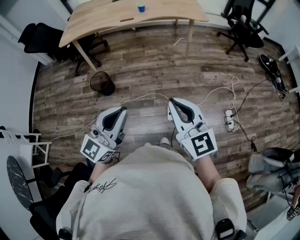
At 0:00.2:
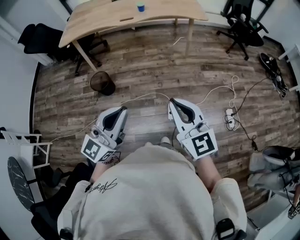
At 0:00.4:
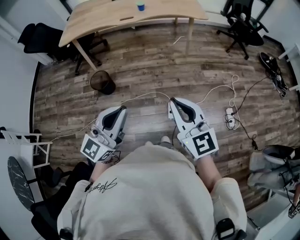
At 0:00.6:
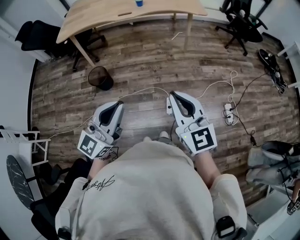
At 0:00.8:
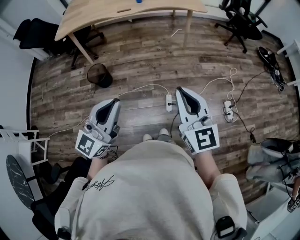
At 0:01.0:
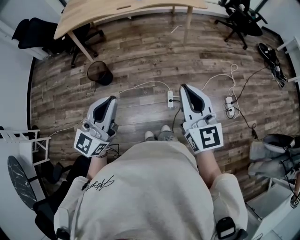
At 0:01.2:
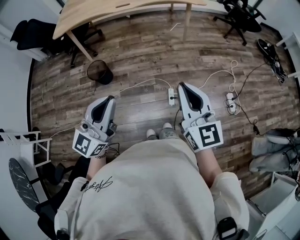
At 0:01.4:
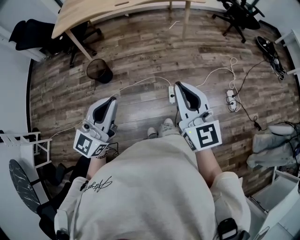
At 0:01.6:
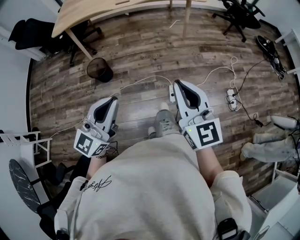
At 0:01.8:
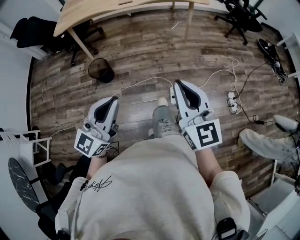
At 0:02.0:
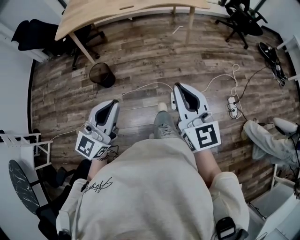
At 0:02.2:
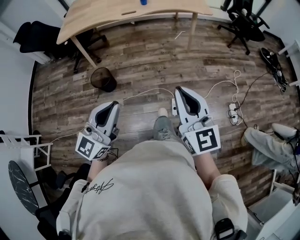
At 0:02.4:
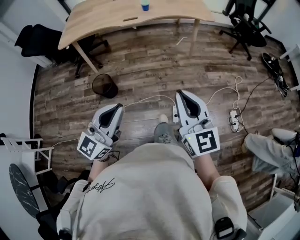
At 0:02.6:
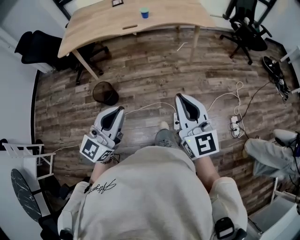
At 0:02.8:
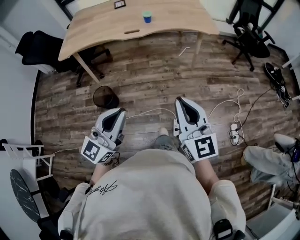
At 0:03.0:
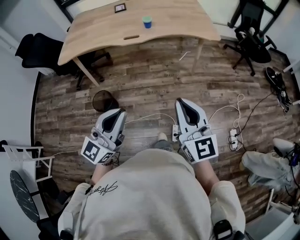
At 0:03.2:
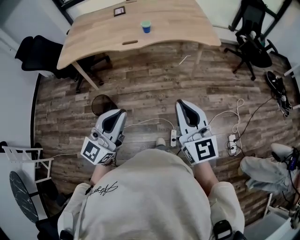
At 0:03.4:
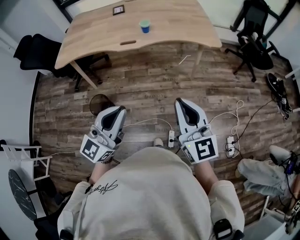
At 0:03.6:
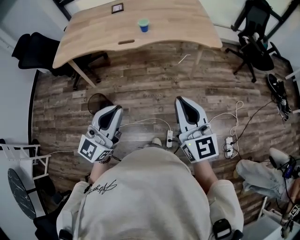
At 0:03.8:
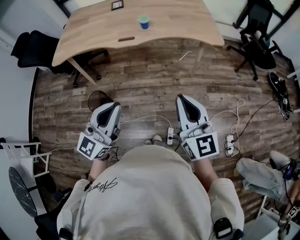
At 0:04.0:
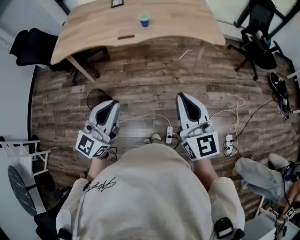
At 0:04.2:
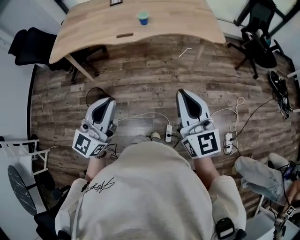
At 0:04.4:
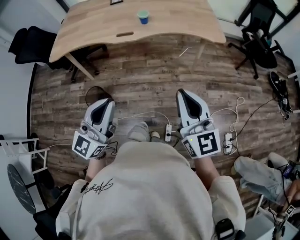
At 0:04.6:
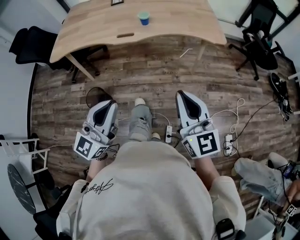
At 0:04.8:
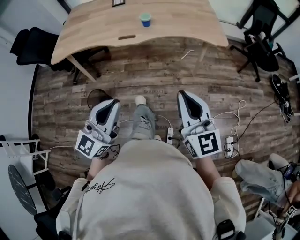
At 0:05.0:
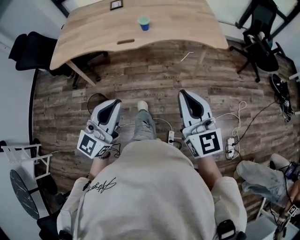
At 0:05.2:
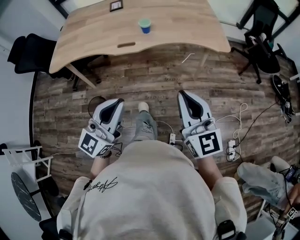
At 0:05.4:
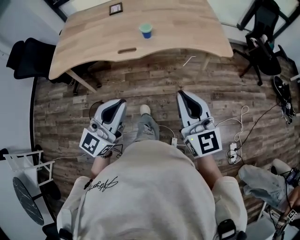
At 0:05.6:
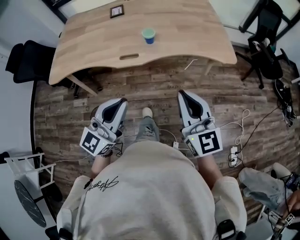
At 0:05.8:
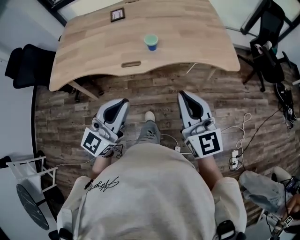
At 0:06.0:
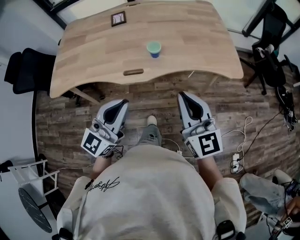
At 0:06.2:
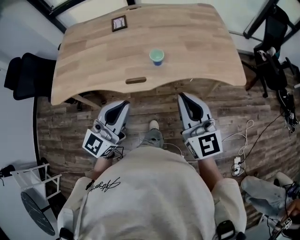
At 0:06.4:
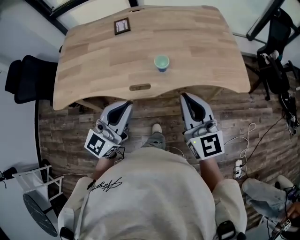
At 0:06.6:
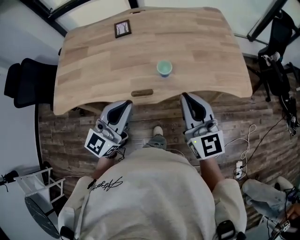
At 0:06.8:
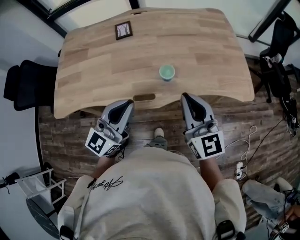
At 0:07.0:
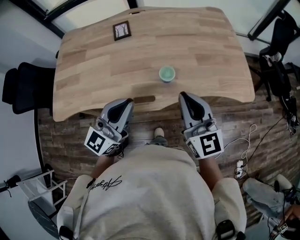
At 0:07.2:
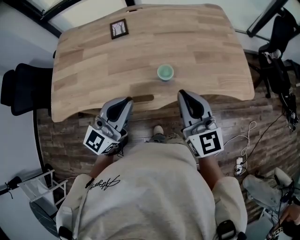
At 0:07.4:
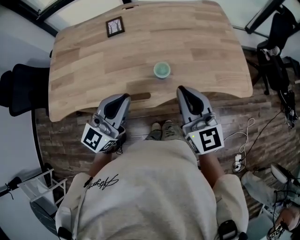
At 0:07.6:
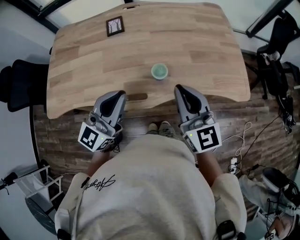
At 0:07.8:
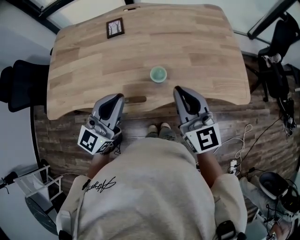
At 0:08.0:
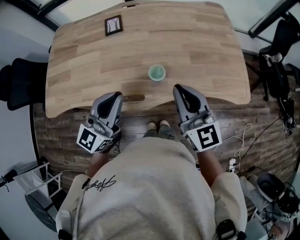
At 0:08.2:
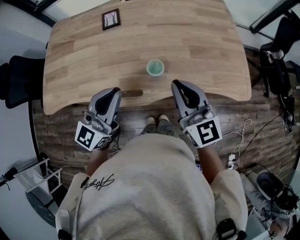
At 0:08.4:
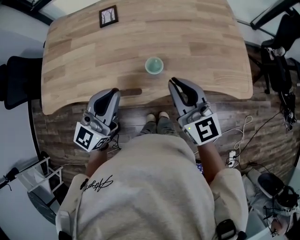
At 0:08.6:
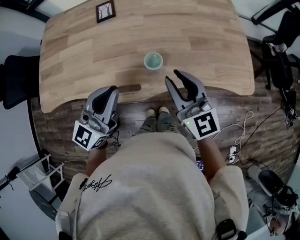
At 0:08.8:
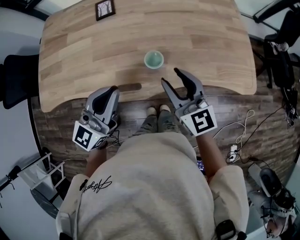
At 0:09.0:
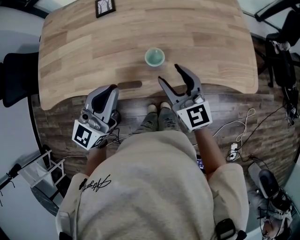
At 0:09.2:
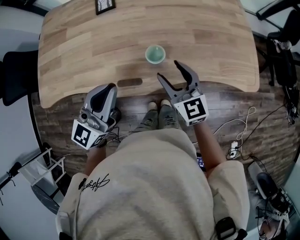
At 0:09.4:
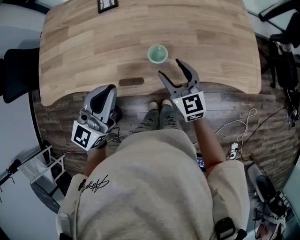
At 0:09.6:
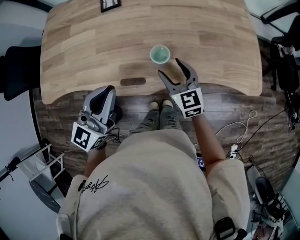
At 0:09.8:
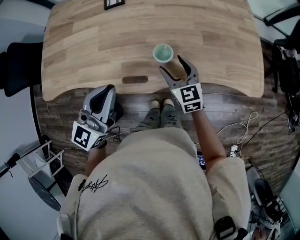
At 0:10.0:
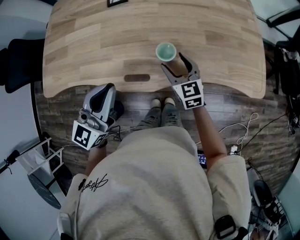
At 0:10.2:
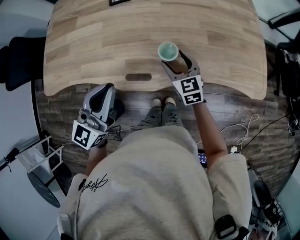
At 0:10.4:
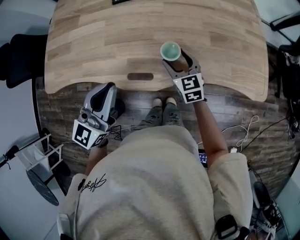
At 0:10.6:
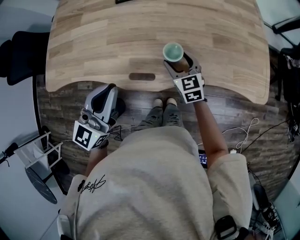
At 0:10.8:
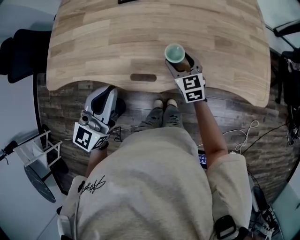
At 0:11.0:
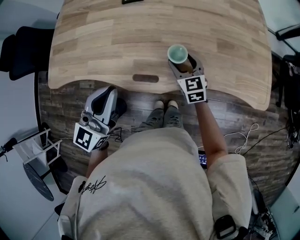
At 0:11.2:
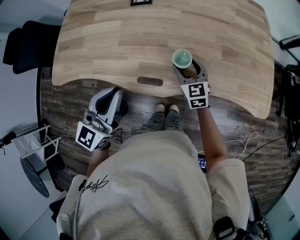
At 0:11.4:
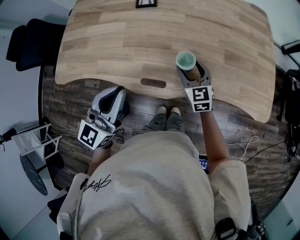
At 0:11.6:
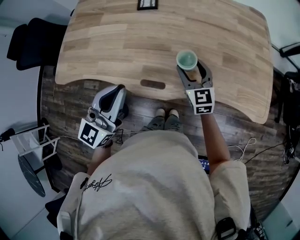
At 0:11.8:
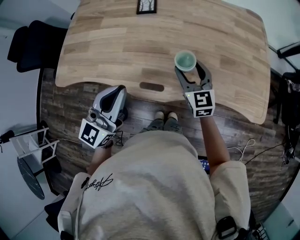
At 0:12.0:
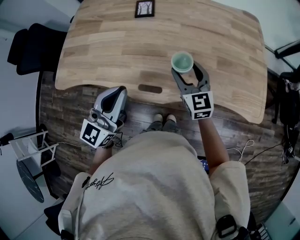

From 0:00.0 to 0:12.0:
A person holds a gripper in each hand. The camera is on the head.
From 0:00.0 to 0:01.6: The left gripper travels to the left by roughly 5 cm.
From 0:01.6 to 0:03.0: Both grippers travel together forward, approximately 20 cm.
From 0:03.0 to 0:04.4: Both grippers move forward, approximately 10 cm.
From 0:04.4 to 0:06.0: The grippers both shift forward by roughly 25 cm.
From 0:06.0 to 0:07.6: The grippers both shift forward by approximately 20 cm.
From 0:07.6 to 0:09.0: The right gripper heads downward, covering approximately 10 cm, and opens.
From 0:09.0 to 0:10.4: The right gripper is displaced downward and forward by roughly 15 cm. The left gripper shifts by about 5 cm.
From 0:10.4 to 0:12.0: The right gripper heads upward, covering roughly 10 cm.

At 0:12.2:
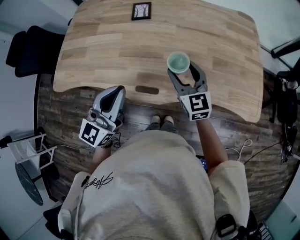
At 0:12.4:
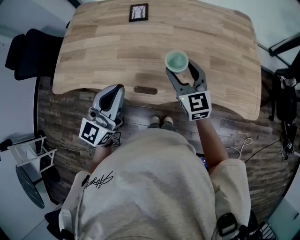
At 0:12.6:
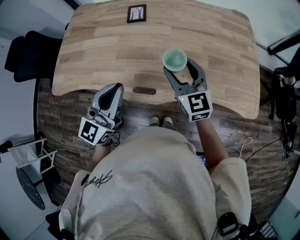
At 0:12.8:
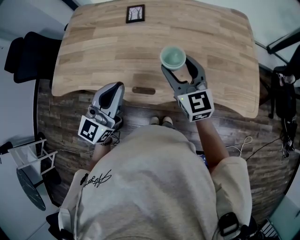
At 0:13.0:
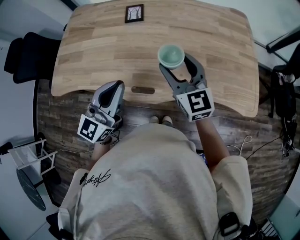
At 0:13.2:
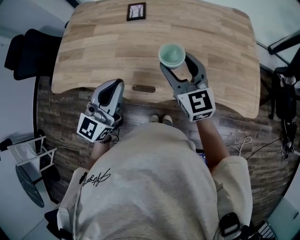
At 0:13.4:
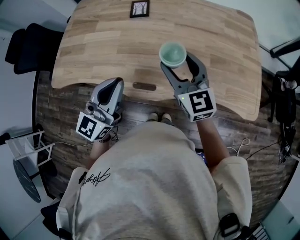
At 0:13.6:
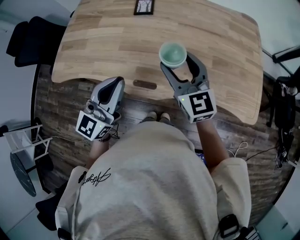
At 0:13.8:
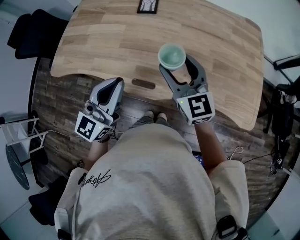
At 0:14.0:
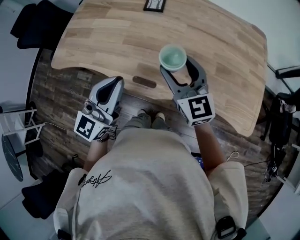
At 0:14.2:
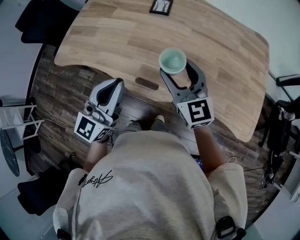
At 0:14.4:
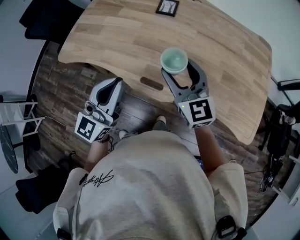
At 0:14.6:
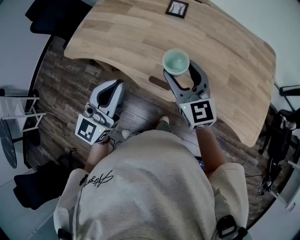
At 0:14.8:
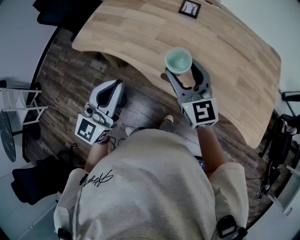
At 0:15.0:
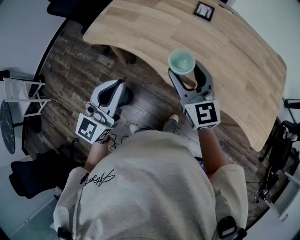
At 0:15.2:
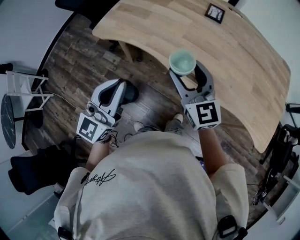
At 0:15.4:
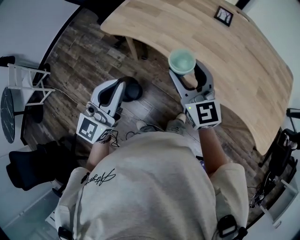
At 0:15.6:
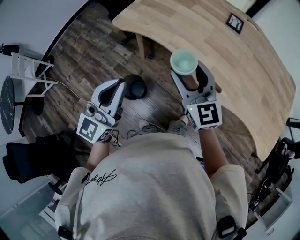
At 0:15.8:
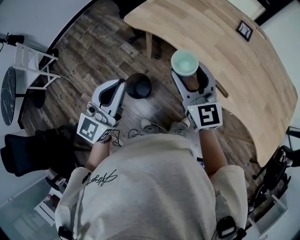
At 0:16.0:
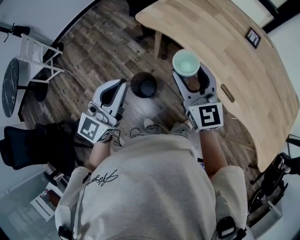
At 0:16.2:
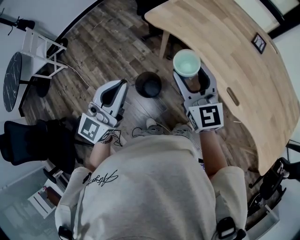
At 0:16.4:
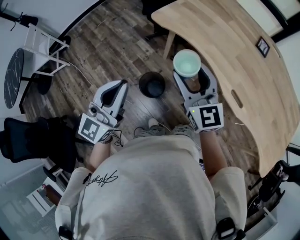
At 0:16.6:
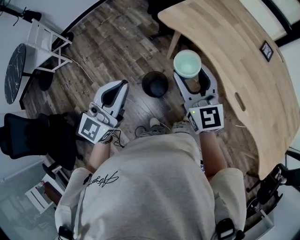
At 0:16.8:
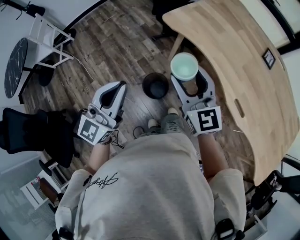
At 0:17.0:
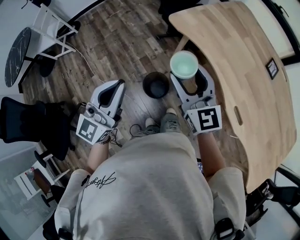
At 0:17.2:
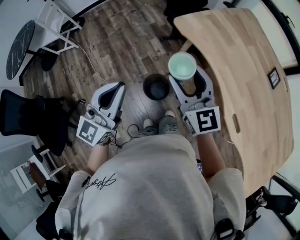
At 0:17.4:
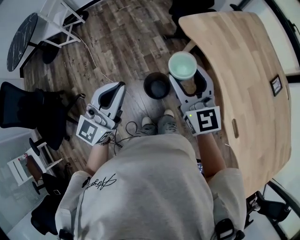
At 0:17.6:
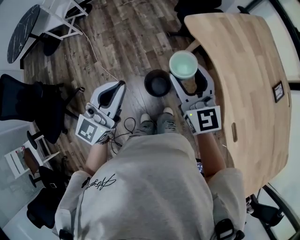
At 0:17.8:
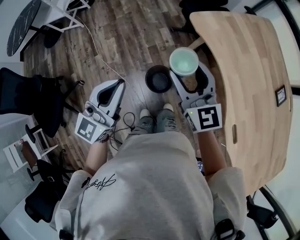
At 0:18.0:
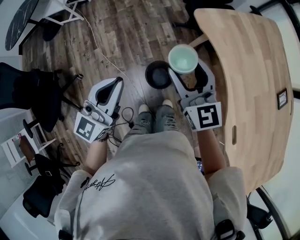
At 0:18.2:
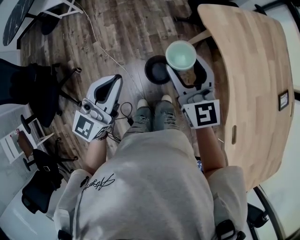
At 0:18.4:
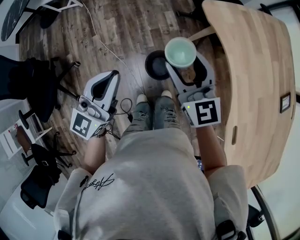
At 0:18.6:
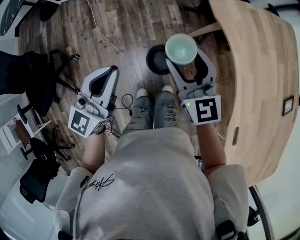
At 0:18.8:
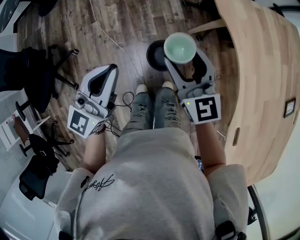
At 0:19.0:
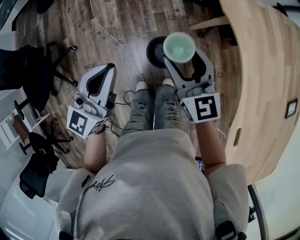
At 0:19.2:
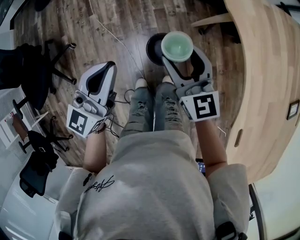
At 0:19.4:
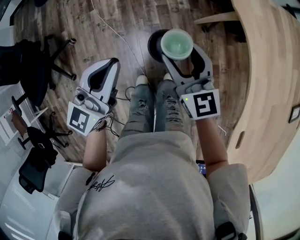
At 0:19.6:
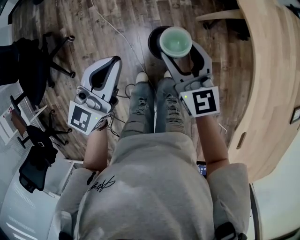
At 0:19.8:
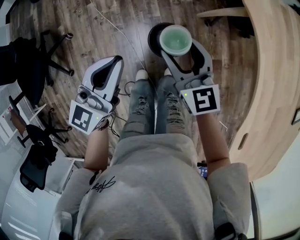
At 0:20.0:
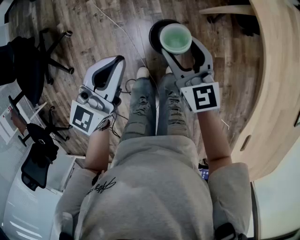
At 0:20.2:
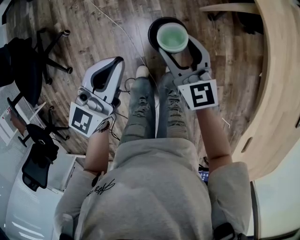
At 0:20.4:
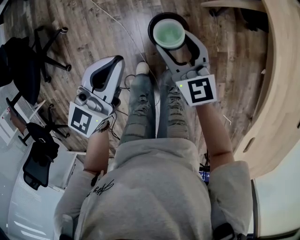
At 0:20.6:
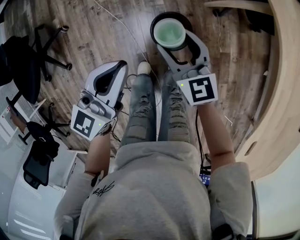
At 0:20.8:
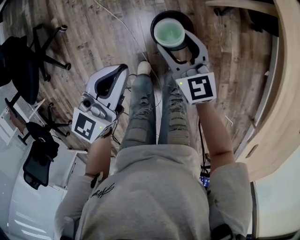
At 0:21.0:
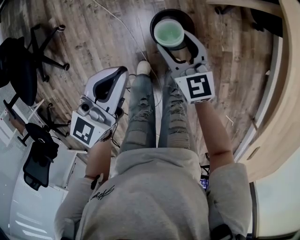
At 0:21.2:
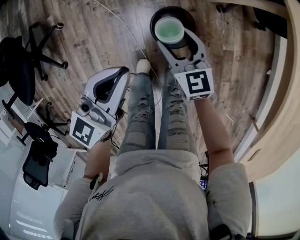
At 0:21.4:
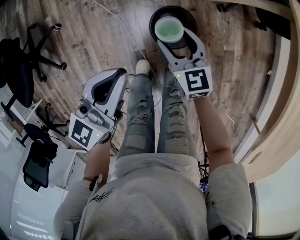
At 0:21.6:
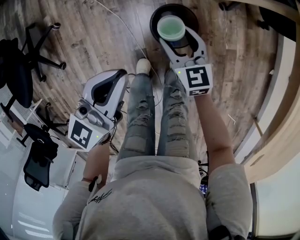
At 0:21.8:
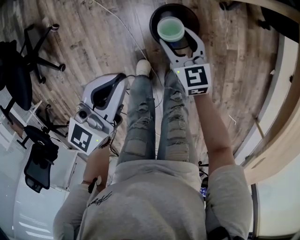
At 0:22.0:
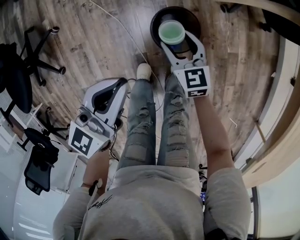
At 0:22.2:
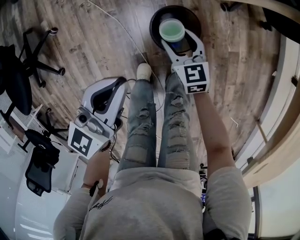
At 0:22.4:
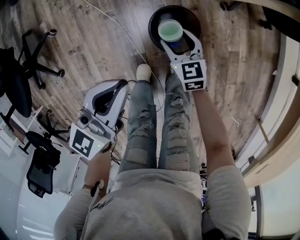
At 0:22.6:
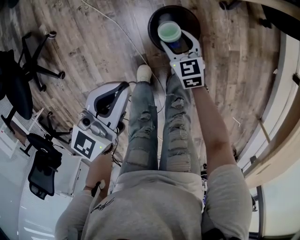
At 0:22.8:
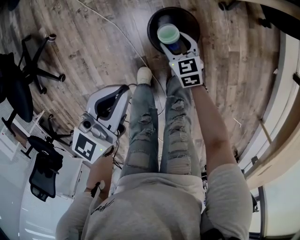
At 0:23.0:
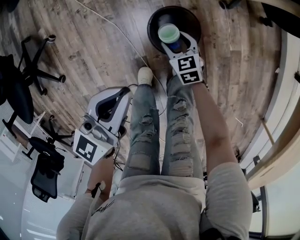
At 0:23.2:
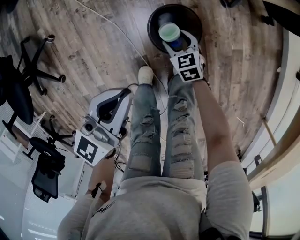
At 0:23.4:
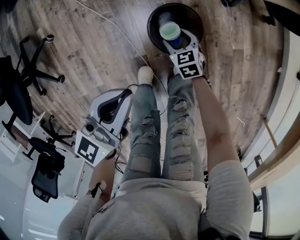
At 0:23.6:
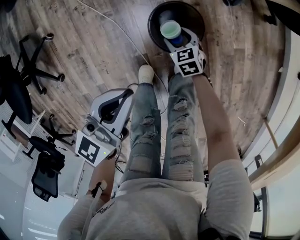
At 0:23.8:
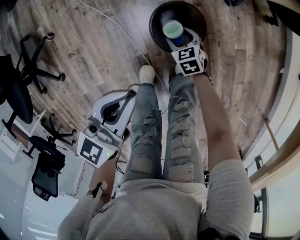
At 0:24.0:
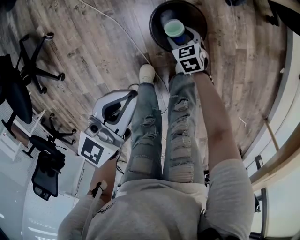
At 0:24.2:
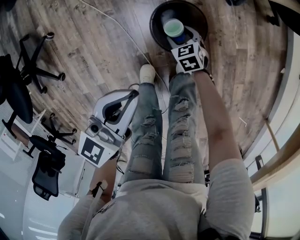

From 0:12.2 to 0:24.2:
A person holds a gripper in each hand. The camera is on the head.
From 0:12.2 to 0:13.8: The right gripper heads upward, covering some 5 cm.
From 0:13.8 to 0:15.2: The right gripper is displaced to the left by some 20 cm. The left gripper shifts approximately 25 cm to the left and backward.
From 0:15.2 to 0:16.6: Both grippers travel together to the left, some 25 cm.
From 0:16.6 to 0:18.2: The left gripper moves downward, approximately 5 cm, and rotates approximately 20 degrees. The right gripper heads to the left, forward and downward, covering roughly 15 cm, and turns by some 30 degrees.
From 0:18.2 to 0:19.8: The two grippers go roughly 15 cm downward.
From 0:19.8 to 0:21.2: The right gripper goes about 20 cm downward. Meanwhile the left gripper travels downward by roughly 10 cm.
From 0:21.2 to 0:22.6: The right gripper shifts about 20 cm downward. The left gripper goes roughly 5 cm downward.
From 0:22.6 to 0:24.2: The left gripper shifts by roughly 5 cm. The right gripper moves downward, roughly 15 cm.
